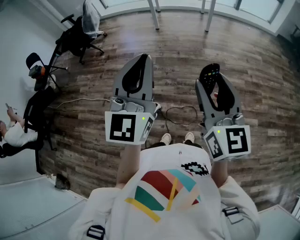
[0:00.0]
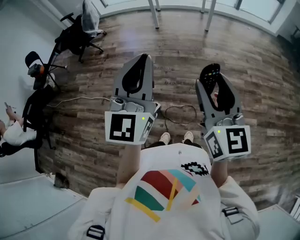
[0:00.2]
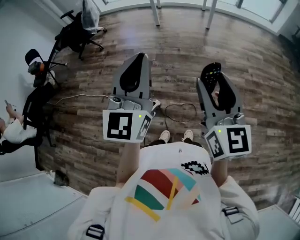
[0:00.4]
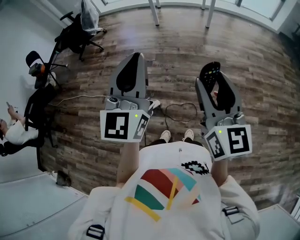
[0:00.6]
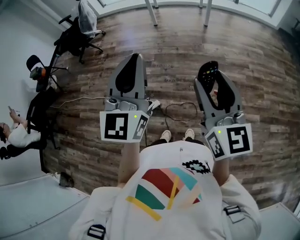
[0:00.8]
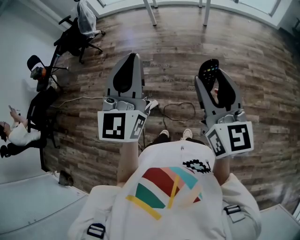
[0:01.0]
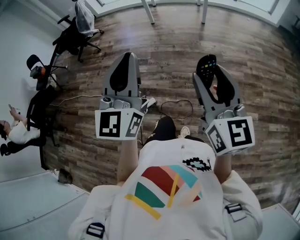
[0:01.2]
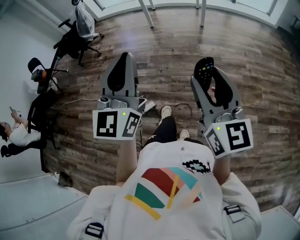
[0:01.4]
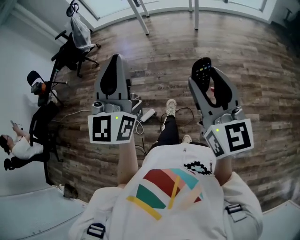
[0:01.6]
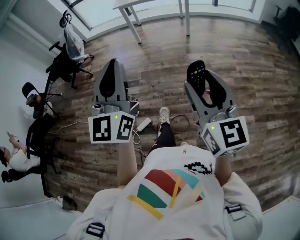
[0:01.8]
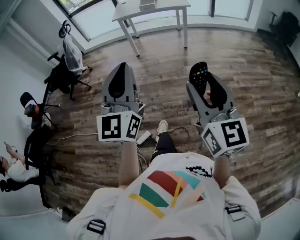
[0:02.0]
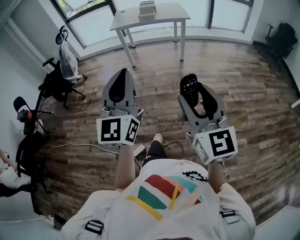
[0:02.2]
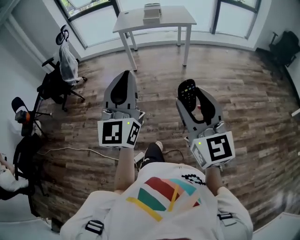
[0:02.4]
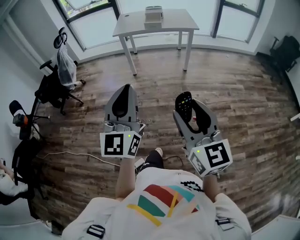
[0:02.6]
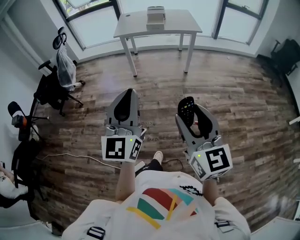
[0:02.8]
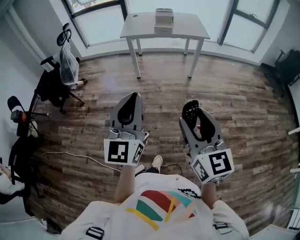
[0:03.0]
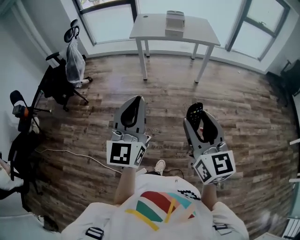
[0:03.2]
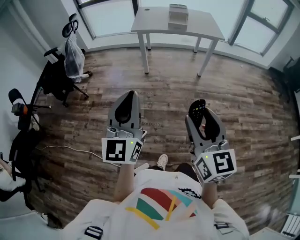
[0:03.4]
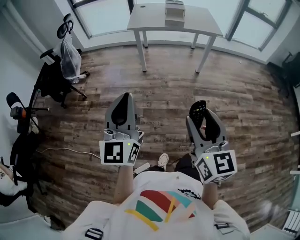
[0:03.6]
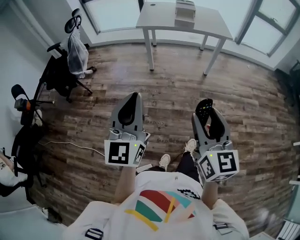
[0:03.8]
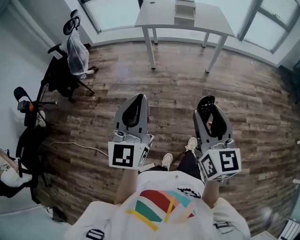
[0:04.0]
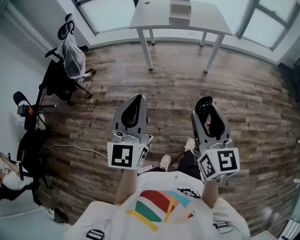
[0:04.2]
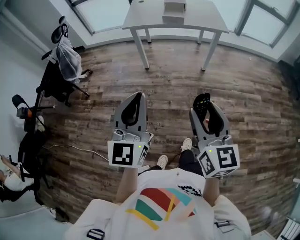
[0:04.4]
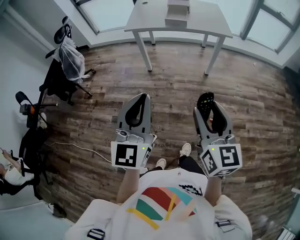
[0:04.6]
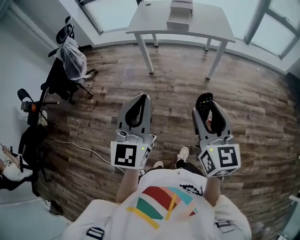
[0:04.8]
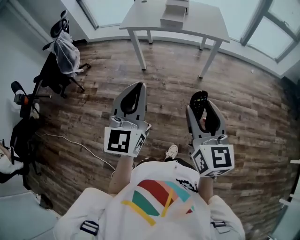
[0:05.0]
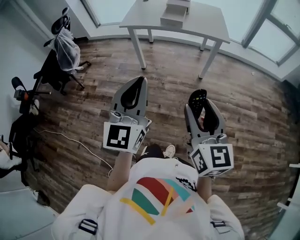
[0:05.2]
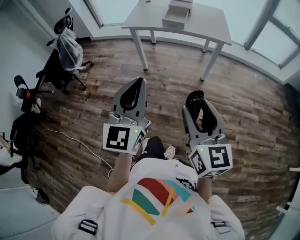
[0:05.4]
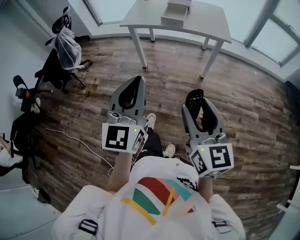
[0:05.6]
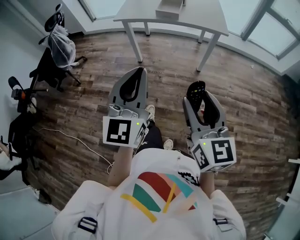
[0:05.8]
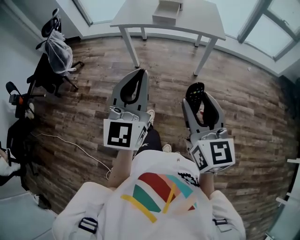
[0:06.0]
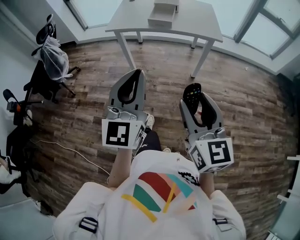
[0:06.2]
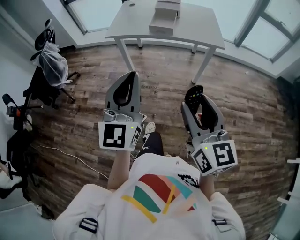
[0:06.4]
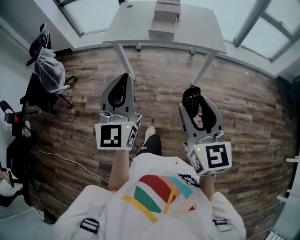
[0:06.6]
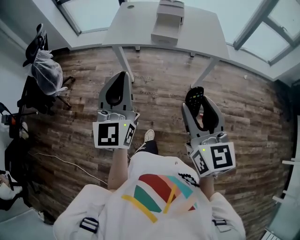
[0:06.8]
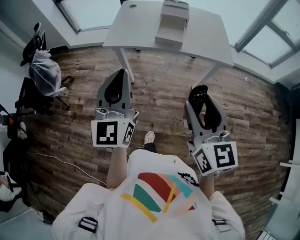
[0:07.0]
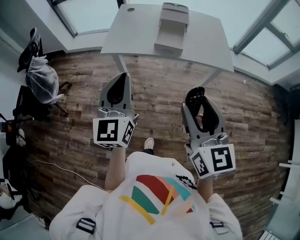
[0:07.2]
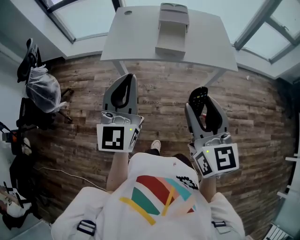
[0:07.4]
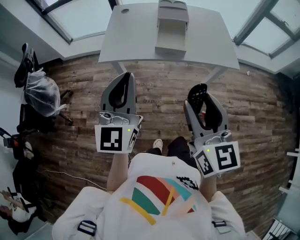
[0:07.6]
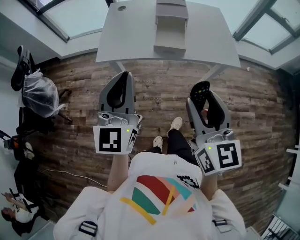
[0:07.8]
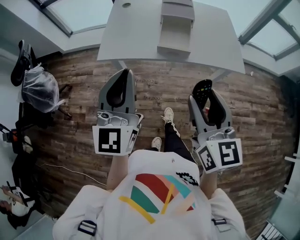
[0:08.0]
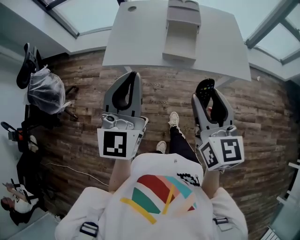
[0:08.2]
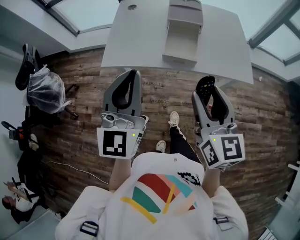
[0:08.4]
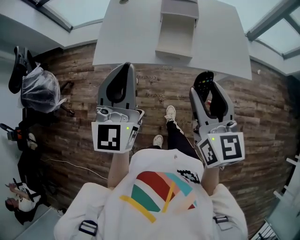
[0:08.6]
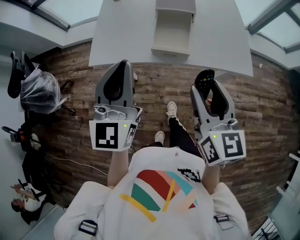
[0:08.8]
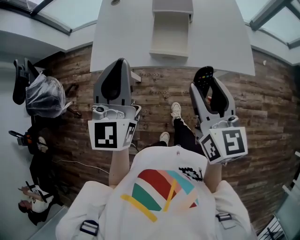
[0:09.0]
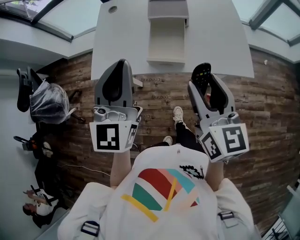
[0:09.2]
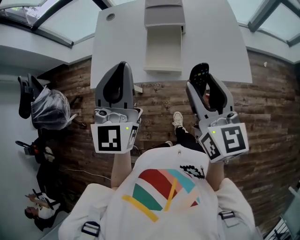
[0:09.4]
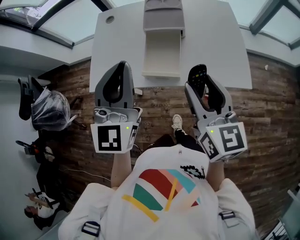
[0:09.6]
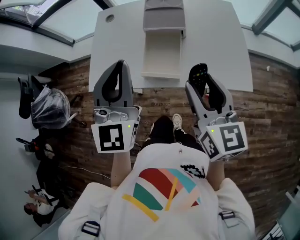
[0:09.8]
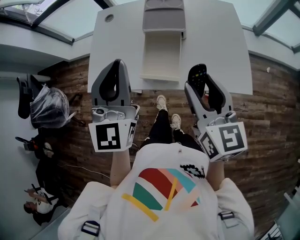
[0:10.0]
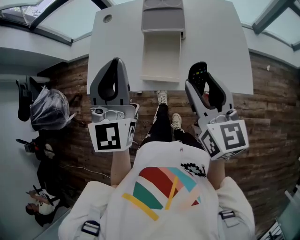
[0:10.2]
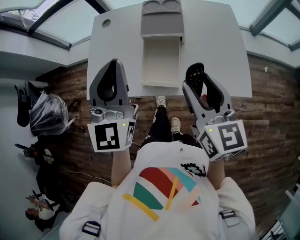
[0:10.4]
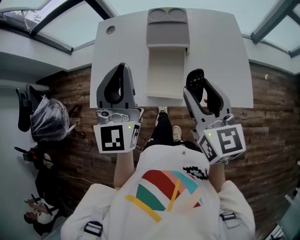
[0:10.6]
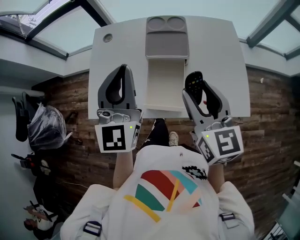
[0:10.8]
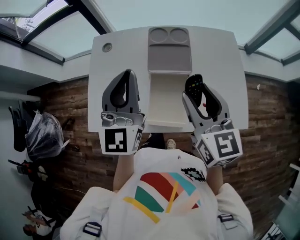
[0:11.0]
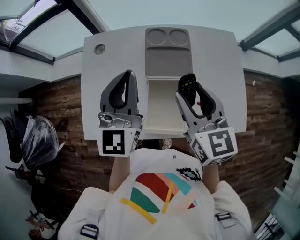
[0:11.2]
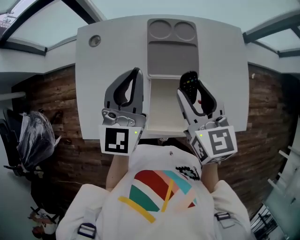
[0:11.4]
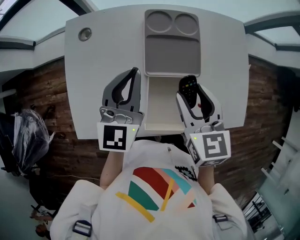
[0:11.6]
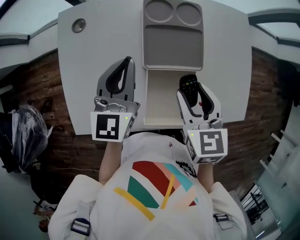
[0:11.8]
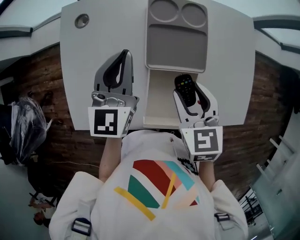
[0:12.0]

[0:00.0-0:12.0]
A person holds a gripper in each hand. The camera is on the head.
0:00.0 to 0:01.6: The two grippers go roughly 10 cm to the right.
0:01.6 to 0:03.0: Both grippers travel together forward, approximately 35 cm.
0:03.0 to 0:04.4: The two grippers go approximately 20 cm forward.
0:04.4 to 0:06.0: Both grippers move to the right and forward, roughly 15 cm.
0:06.0 to 0:07.6: Both grippers move forward, roughly 35 cm.
0:07.6 to 0:09.0: The grippers both shift forward by some 20 cm.
0:09.0 to 0:10.4: The right gripper moves forward, approximately 15 cm; the left gripper is displaced forward and to the right by approximately 15 cm.
0:10.4 to 0:12.0: The two grippers go about 25 cm forward and downward. The right gripper tips its fingers downward by about 30 degrees. Meanwhile the left gripper turns by about 30 degrees.

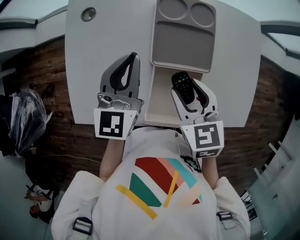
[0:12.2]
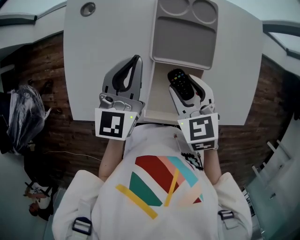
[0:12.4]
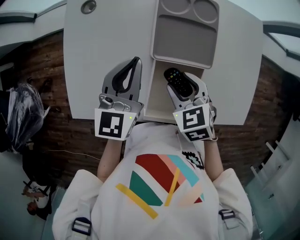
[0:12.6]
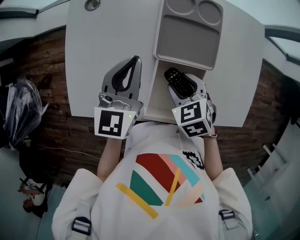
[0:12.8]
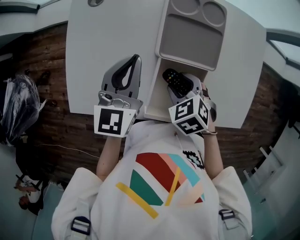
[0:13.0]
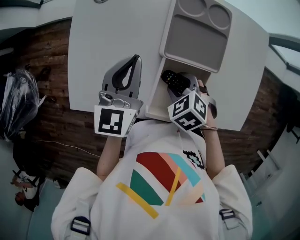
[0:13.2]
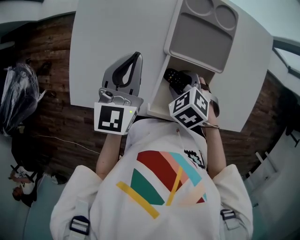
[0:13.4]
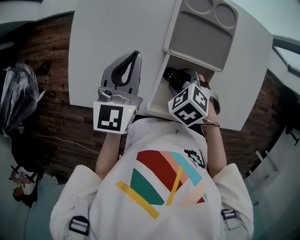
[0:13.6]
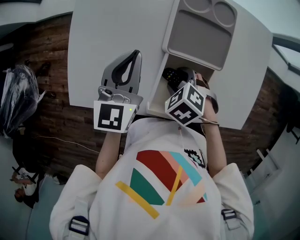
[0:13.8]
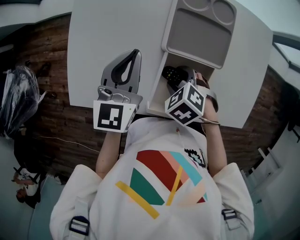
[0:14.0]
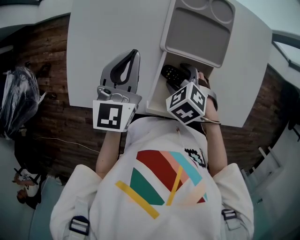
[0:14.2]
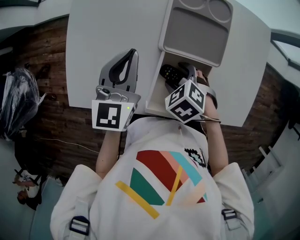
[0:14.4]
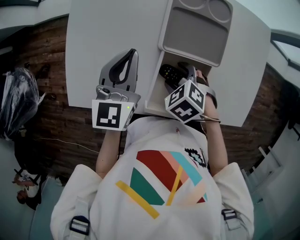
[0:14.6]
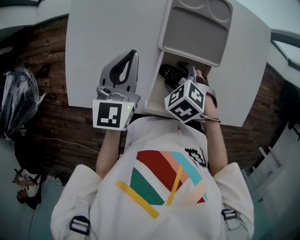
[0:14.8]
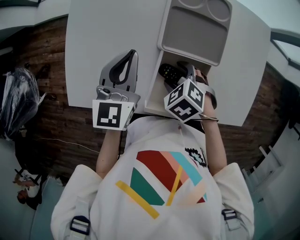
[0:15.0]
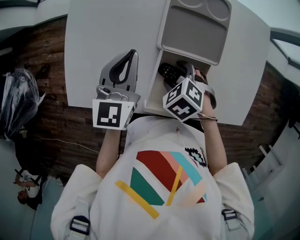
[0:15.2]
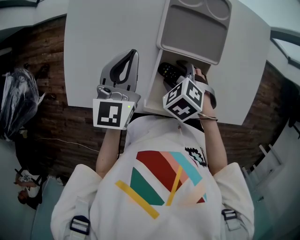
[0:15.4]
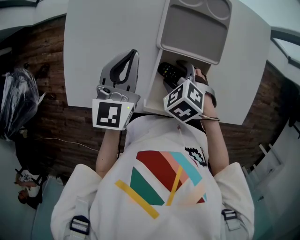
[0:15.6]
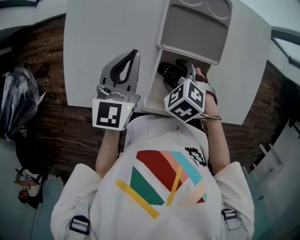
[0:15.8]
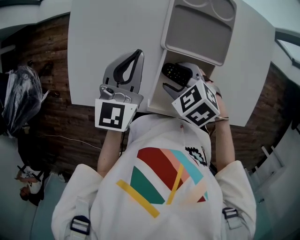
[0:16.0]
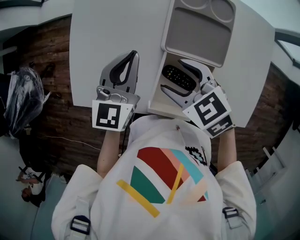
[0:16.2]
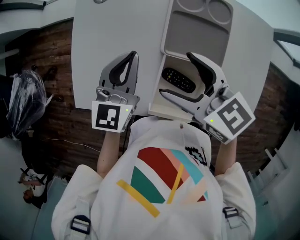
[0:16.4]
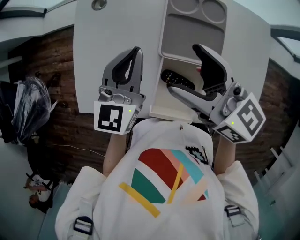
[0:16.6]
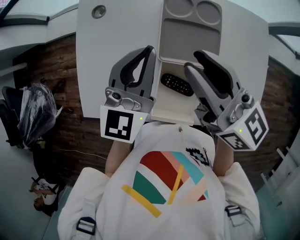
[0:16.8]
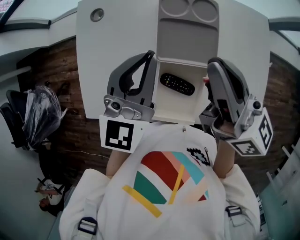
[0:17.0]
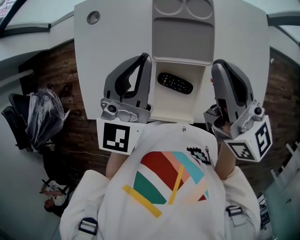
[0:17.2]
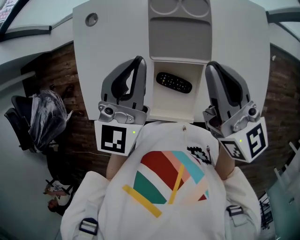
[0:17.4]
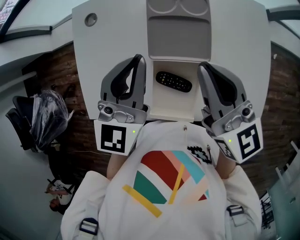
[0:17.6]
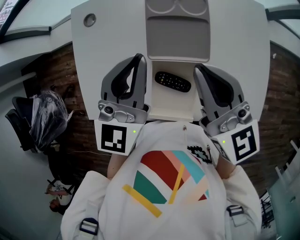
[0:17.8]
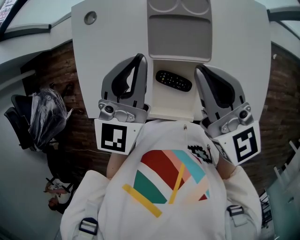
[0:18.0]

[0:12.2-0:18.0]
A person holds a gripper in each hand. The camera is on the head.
0:12.2 to 0:13.6: The right gripper travels downward by about 15 cm, and tilts its fingers some 30 degrees downward. The left gripper changes place by about 5 cm.
0:13.6 to 0:15.0: The two grippers keep their place.
0:15.0 to 0:16.6: The right gripper goes roughly 25 cm upward, and tilts its fingers about 70 degrees upward; the left gripper goes about 5 cm upward.
0:16.6 to 0:18.0: The left gripper shifts some 10 cm to the right and upward, while the right gripper goes roughly 10 cm to the right, changes its angle by roughly 20 degrees, and closes.

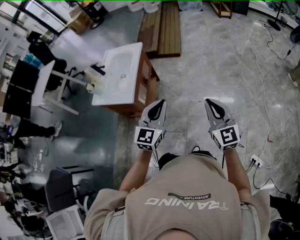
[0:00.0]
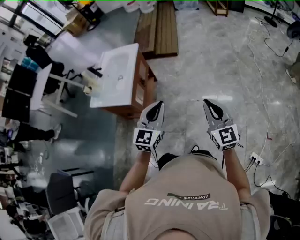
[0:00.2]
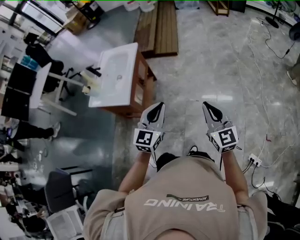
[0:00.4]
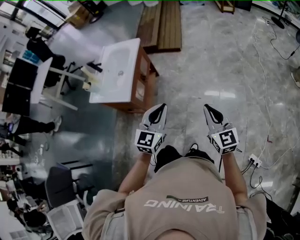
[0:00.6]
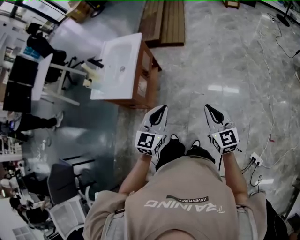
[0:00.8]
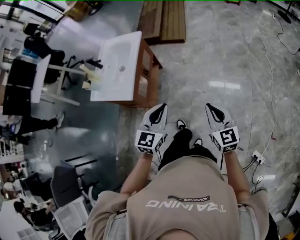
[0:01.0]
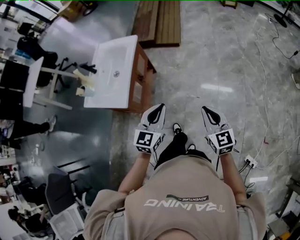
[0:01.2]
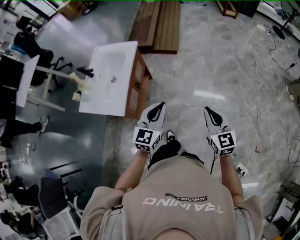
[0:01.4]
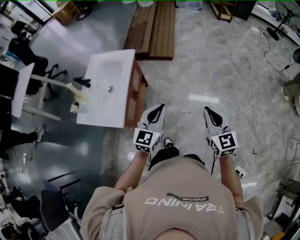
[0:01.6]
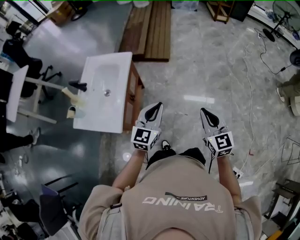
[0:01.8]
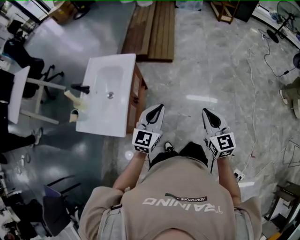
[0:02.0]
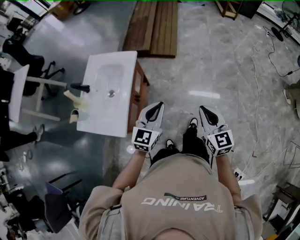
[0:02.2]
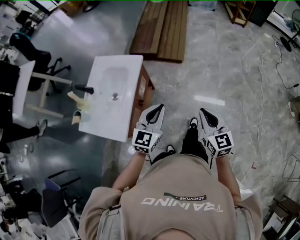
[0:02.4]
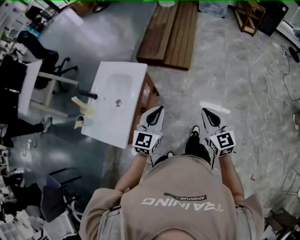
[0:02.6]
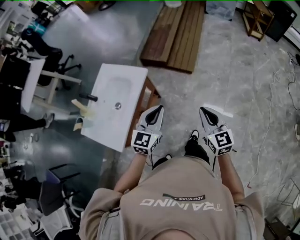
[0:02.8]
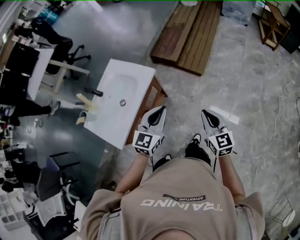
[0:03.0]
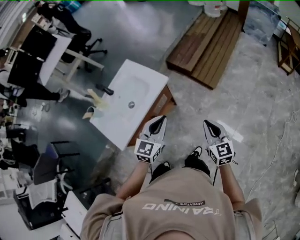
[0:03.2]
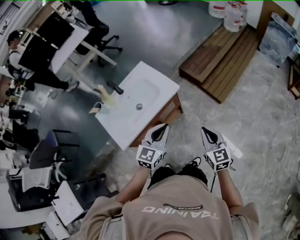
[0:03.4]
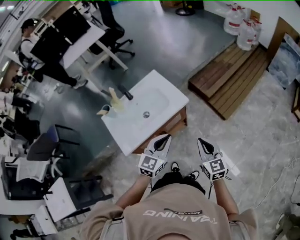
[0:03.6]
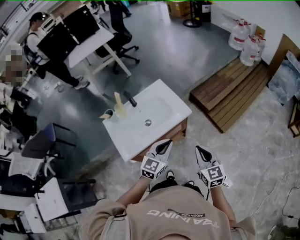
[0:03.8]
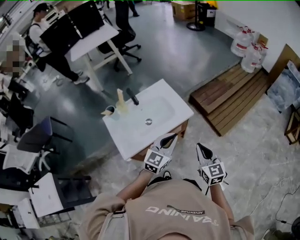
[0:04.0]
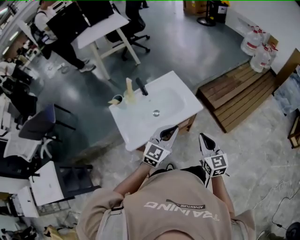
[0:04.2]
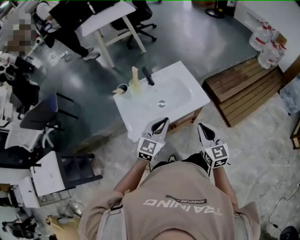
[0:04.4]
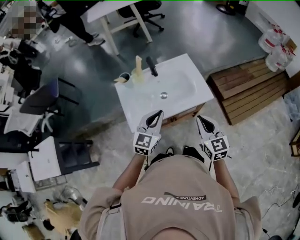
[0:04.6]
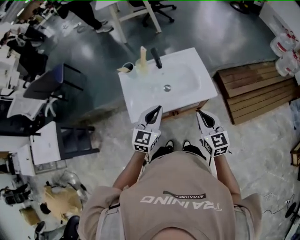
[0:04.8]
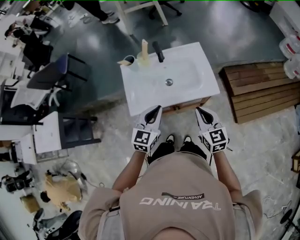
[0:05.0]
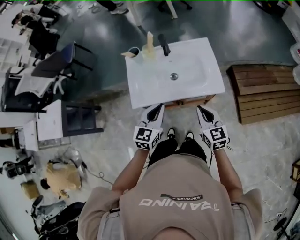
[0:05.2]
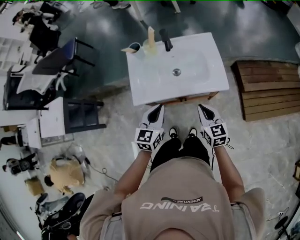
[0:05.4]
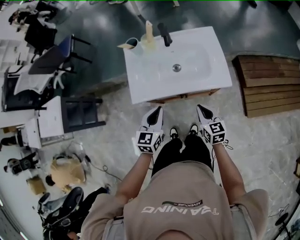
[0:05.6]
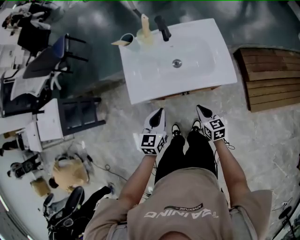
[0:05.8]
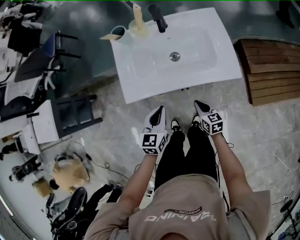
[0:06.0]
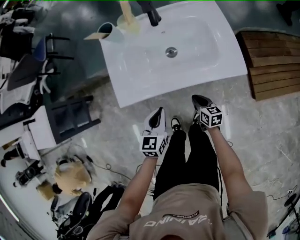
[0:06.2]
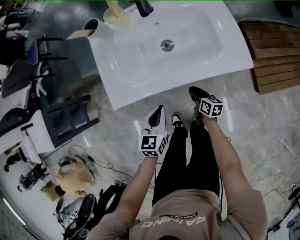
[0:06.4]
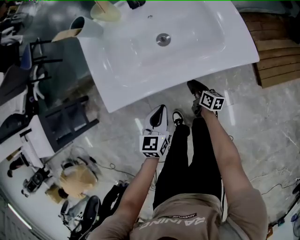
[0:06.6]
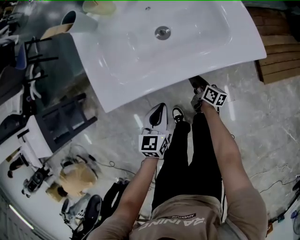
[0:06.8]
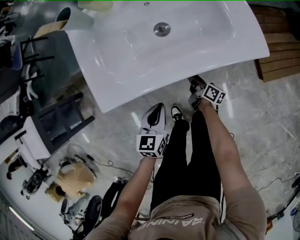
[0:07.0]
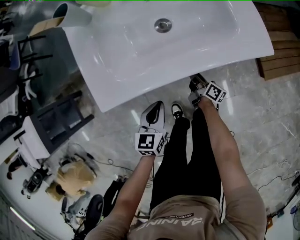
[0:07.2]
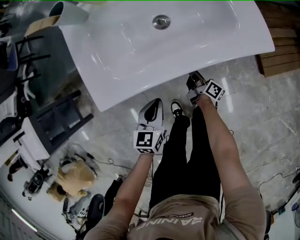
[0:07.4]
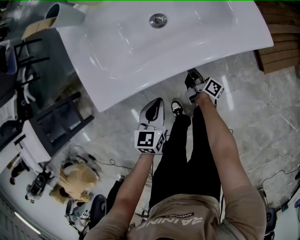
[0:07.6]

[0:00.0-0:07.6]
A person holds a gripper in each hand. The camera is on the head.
0:00.0 to 0:01.6: The grippers both shift forward by approximately 20 cm.
0:01.6 to 0:03.0: The grippers both shift forward by roughly 30 cm. The right gripper rotates approximately 20 degrees.
0:03.0 to 0:04.6: The left gripper ends up about 25 cm from where it was, and changes its angle by roughly 40 degrees. Meanwhile the right gripper ends up approximately 25 cm from where it was, and turns by approximately 40 degrees.
0:04.6 to 0:06.0: The left gripper heads downward, covering roughly 20 cm, and turns by some 30 degrees; the right gripper travels downward by approximately 30 cm, and swivels approximately 30 degrees.
0:06.0 to 0:07.6: The right gripper goes about 20 cm downward and forward, and rotates around the line of its fingers by roughly 60 degrees, clockwise from behind. The left gripper moves downward, roughly 15 cm.
